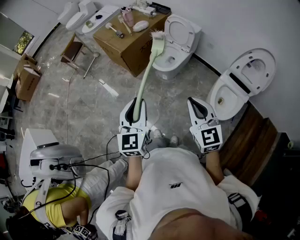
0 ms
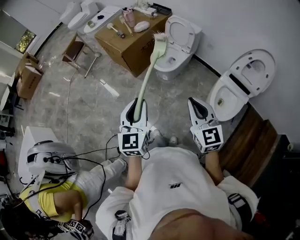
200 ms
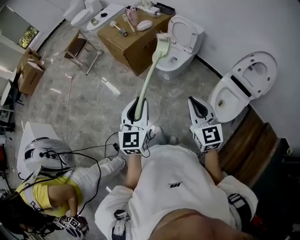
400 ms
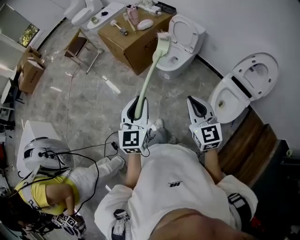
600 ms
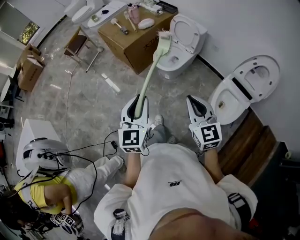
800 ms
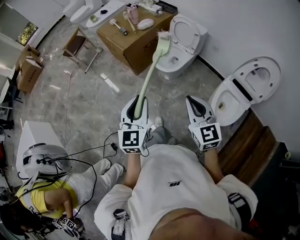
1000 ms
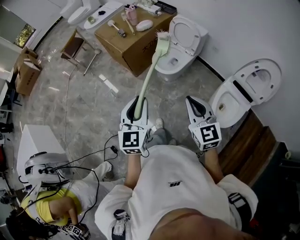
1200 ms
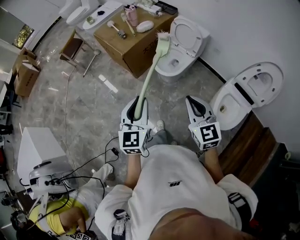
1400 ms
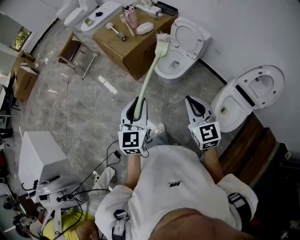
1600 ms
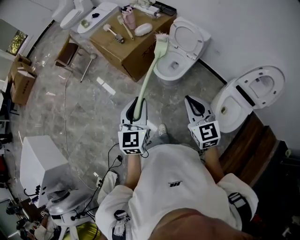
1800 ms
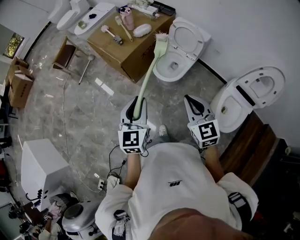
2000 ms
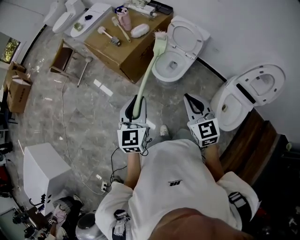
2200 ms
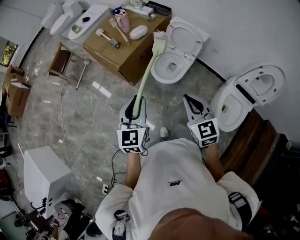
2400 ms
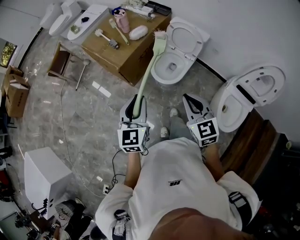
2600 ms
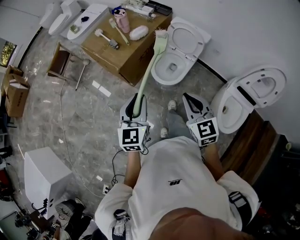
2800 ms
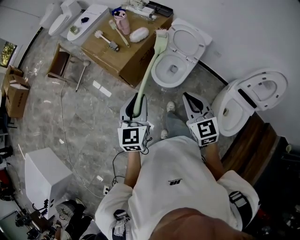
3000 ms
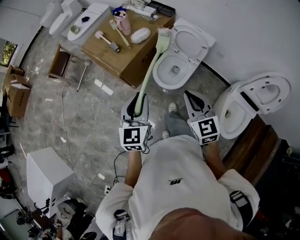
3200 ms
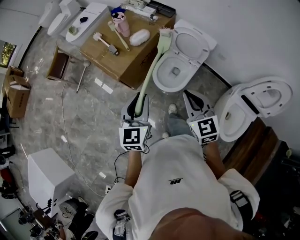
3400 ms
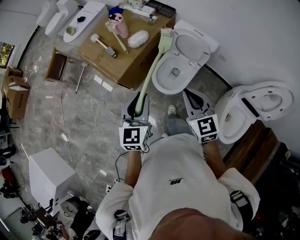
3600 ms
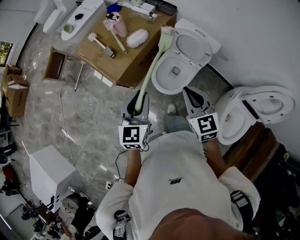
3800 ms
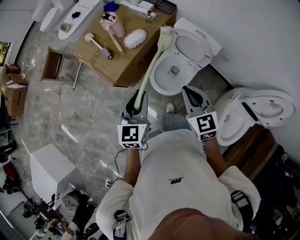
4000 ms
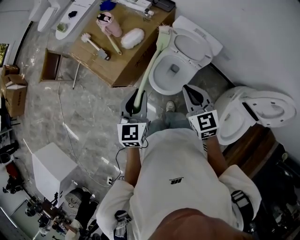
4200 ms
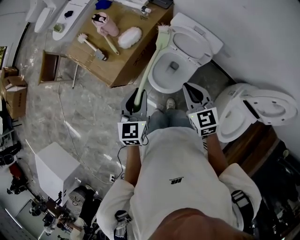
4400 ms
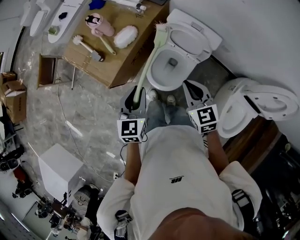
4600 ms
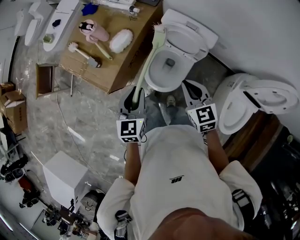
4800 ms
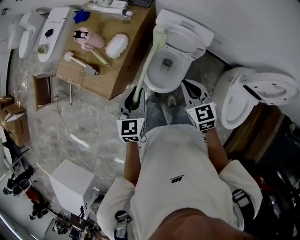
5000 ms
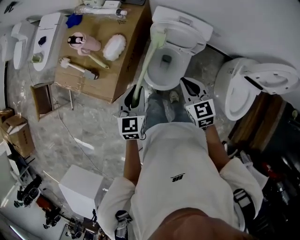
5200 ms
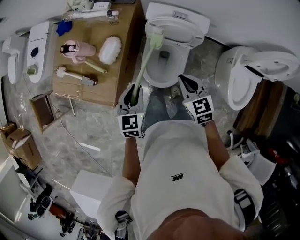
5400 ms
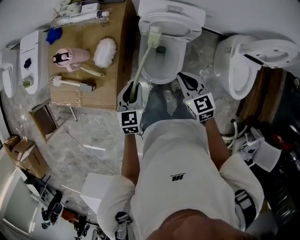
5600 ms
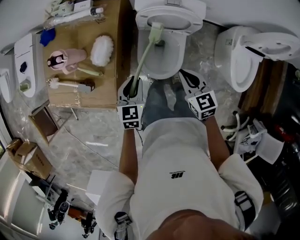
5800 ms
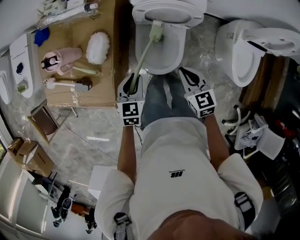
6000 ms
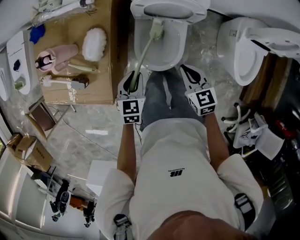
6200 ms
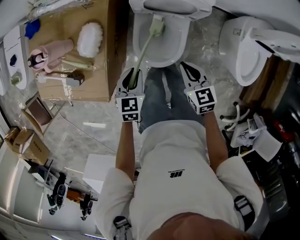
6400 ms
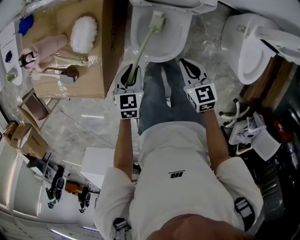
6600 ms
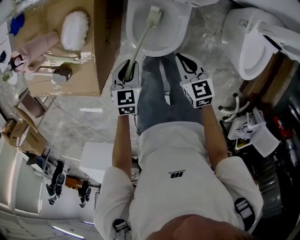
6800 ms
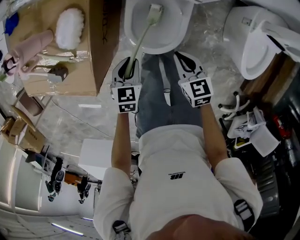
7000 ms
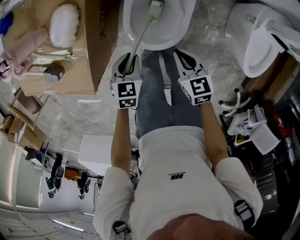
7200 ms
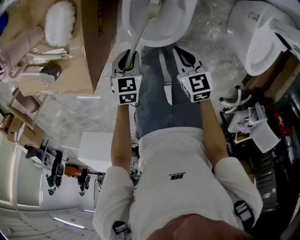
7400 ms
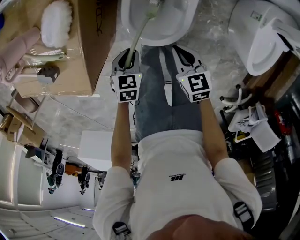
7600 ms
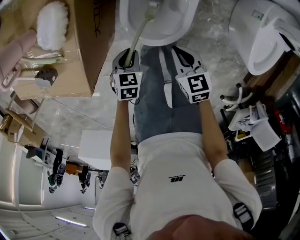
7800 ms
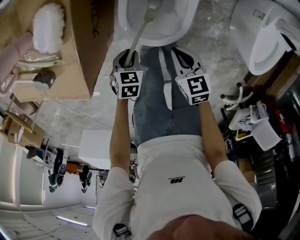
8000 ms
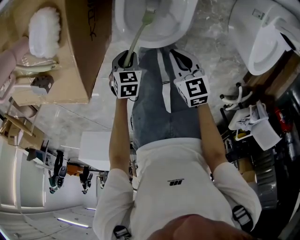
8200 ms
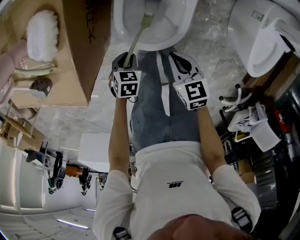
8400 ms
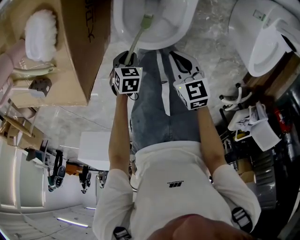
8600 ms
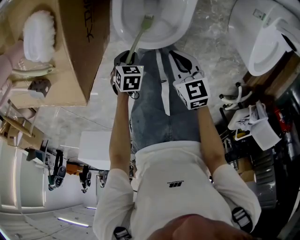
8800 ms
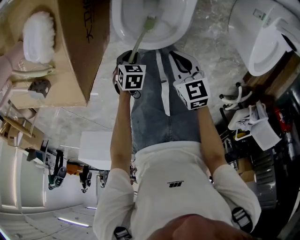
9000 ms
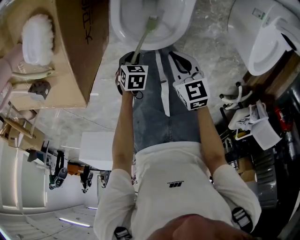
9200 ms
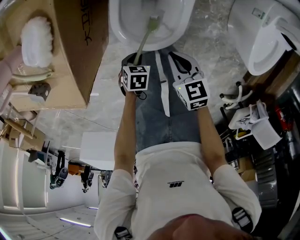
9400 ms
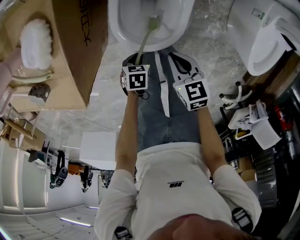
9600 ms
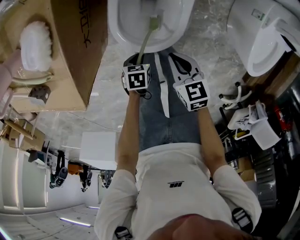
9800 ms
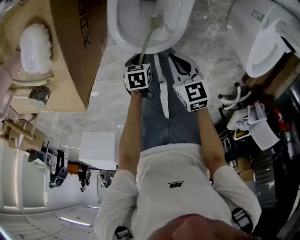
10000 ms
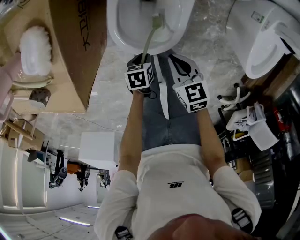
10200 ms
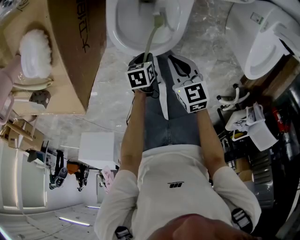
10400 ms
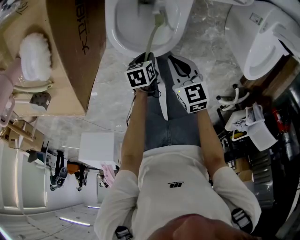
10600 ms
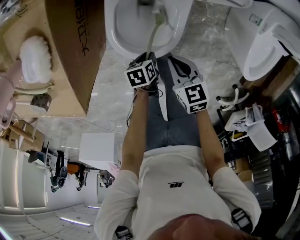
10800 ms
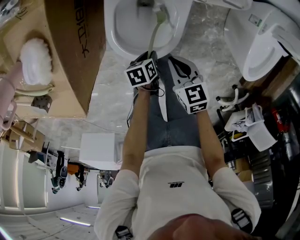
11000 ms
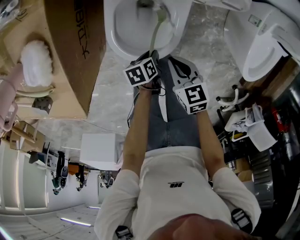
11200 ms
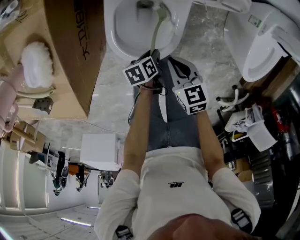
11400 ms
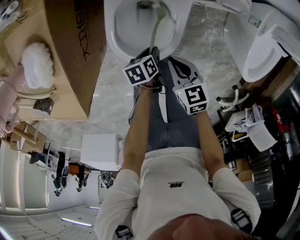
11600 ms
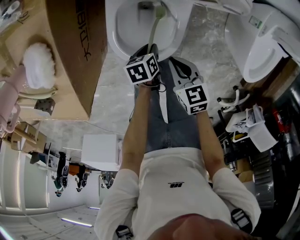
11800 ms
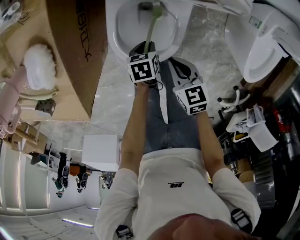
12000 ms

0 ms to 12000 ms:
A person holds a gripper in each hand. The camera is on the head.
0 ms to 1600 ms: Both grippers travel together forward, about 15 cm.
1600 ms to 3000 ms: Both grippers move forward, about 20 cm.
3000 ms to 4400 ms: The two grippers go roughly 30 cm forward.
4400 ms to 6000 ms: The two grippers go about 20 cm downward. The right gripper swivels approximately 30 degrees, while the left gripper turns by about 40 degrees.
6000 ms to 7600 ms: Both grippers move downward, some 25 cm.
7600 ms to 9000 ms: The left gripper goes about 10 cm downward, and changes its angle by about 20 degrees.
9000 ms to 10400 ms: The left gripper changes place by some 10 cm, and changes its angle by approximately 30 degrees.
10400 ms to 12000 ms: The left gripper travels forward by roughly 10 cm.

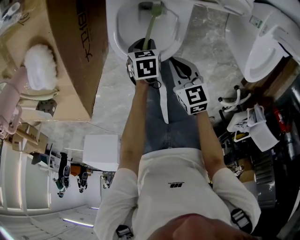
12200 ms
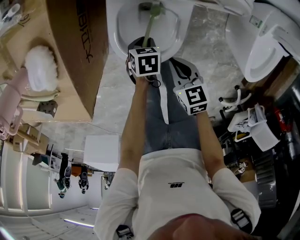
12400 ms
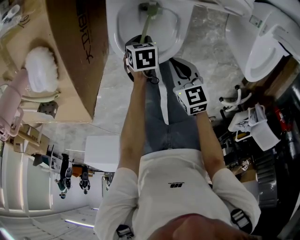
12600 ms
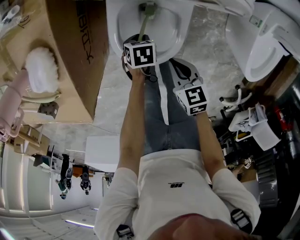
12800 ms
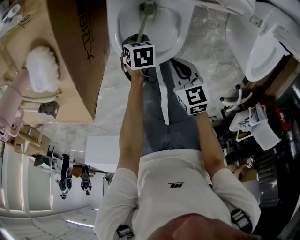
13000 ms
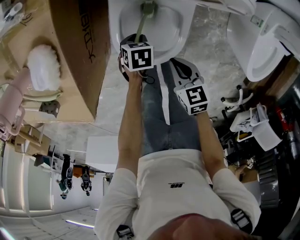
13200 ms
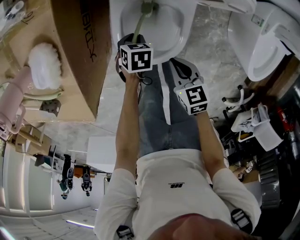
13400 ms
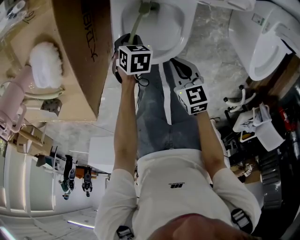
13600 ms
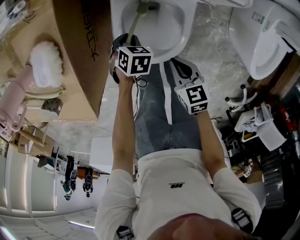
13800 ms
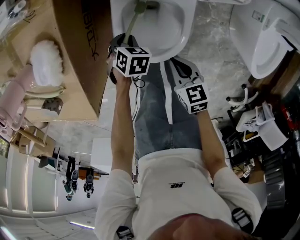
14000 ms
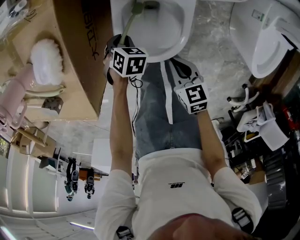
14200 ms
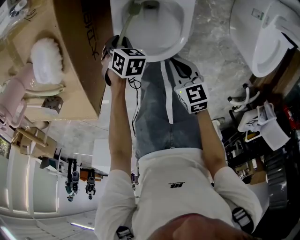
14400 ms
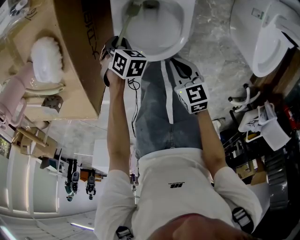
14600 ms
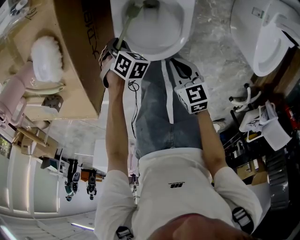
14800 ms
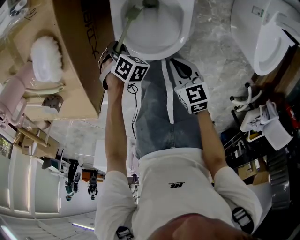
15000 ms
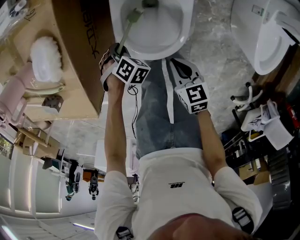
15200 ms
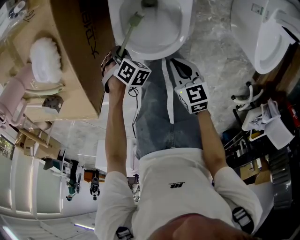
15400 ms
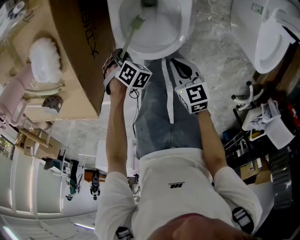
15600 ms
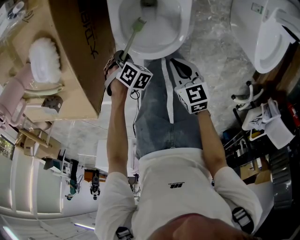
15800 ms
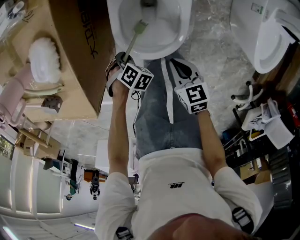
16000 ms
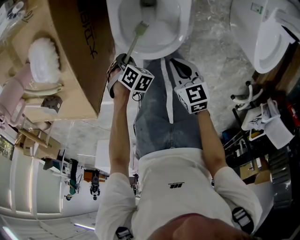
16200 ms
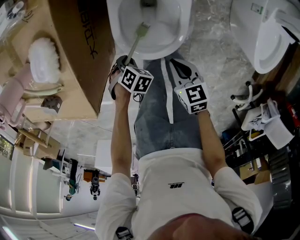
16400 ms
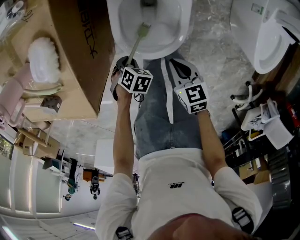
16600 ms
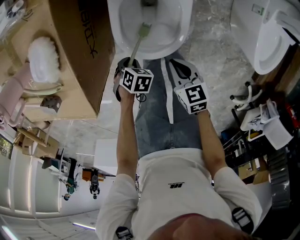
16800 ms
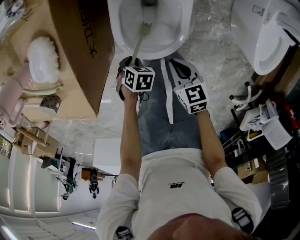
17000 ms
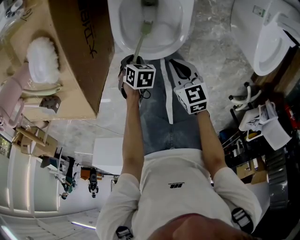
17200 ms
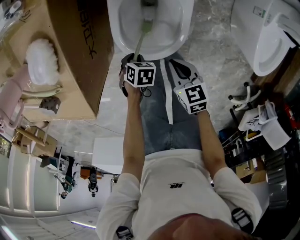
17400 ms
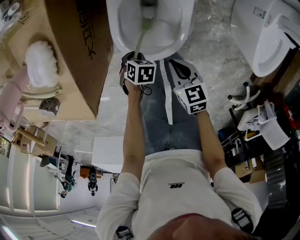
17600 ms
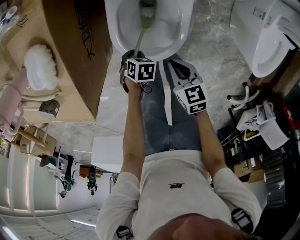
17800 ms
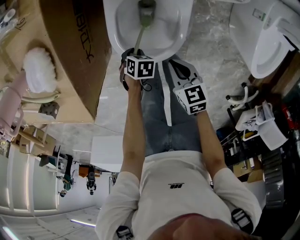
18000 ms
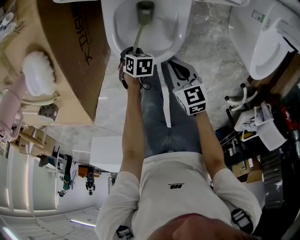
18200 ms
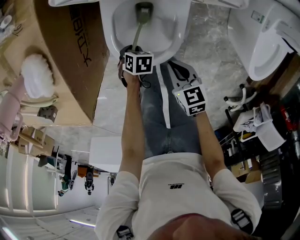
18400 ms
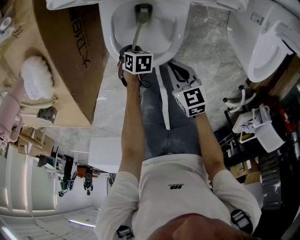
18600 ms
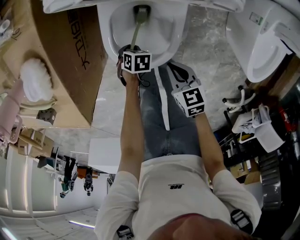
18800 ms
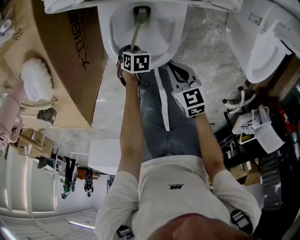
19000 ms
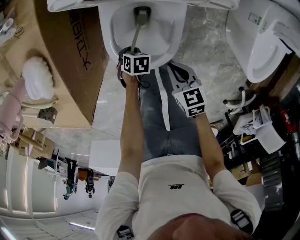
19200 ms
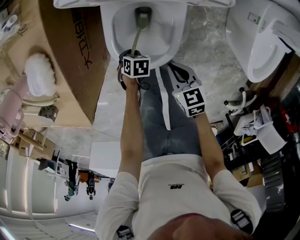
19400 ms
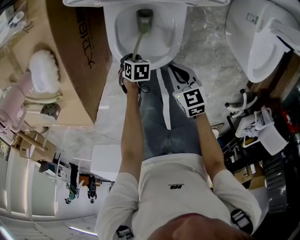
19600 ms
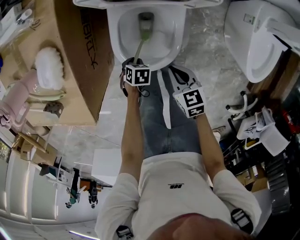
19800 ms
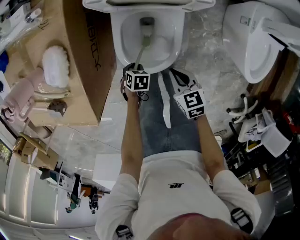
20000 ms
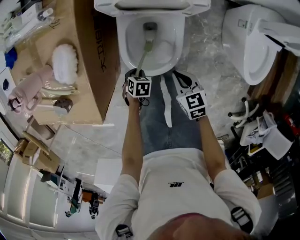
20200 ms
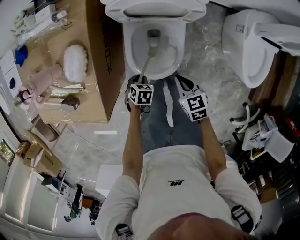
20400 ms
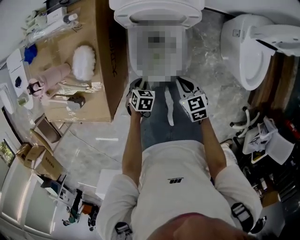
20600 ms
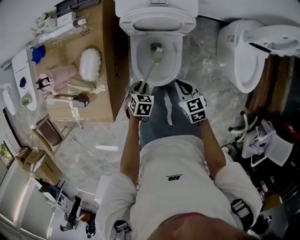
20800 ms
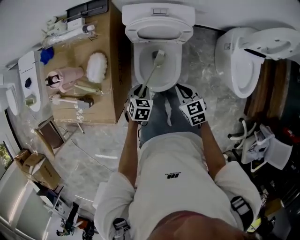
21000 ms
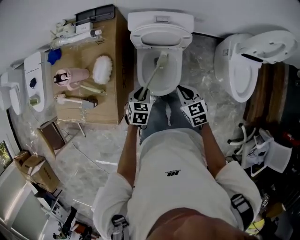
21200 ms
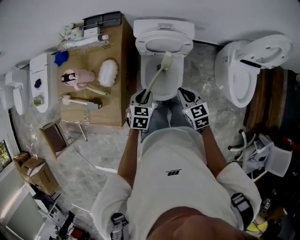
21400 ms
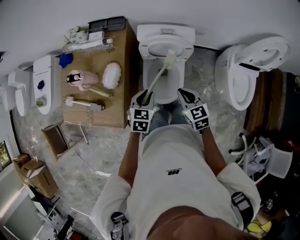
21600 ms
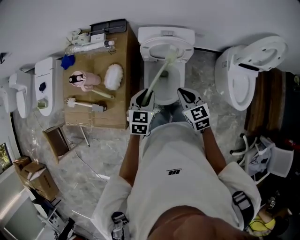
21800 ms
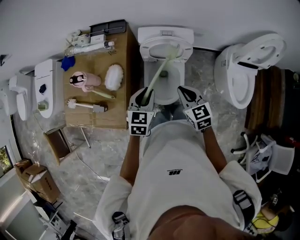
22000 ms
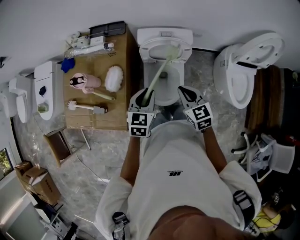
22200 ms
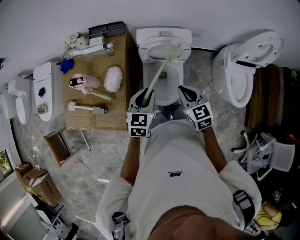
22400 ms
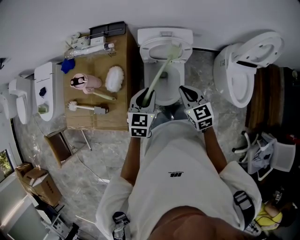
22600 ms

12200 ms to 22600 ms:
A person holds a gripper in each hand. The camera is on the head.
12200 ms to 13600 ms: The left gripper shifts by about 10 cm, and turns by some 20 degrees.
13600 ms to 15200 ms: The left gripper moves approximately 10 cm, and rotates approximately 40 degrees.
15200 ms to 16600 ms: The left gripper changes place by about 10 cm.
16600 ms to 18200 ms: The left gripper ends up approximately 10 cm from where it was, and changes its angle by about 20 degrees.
18200 ms to 19600 ms: The grippers stay close to where they were, moving slightly.
19600 ms to 21200 ms: The two grippers go about 30 cm upward. The left gripper turns by some 40 degrees.
21200 ms to 22600 ms: Both grippers move upward, about 15 cm. The left gripper turns by about 20 degrees.

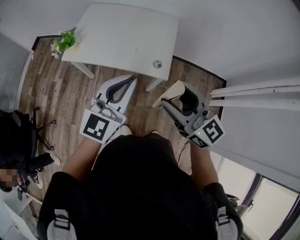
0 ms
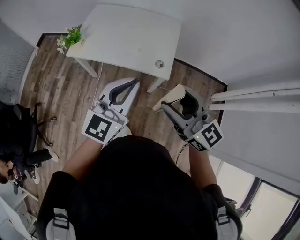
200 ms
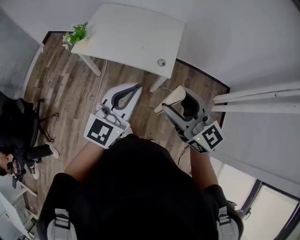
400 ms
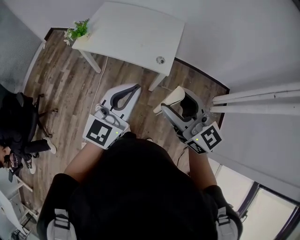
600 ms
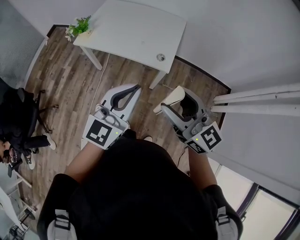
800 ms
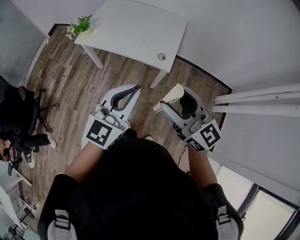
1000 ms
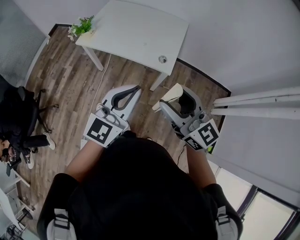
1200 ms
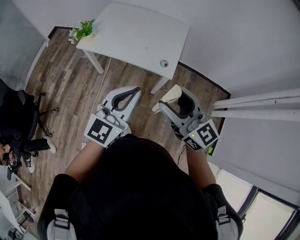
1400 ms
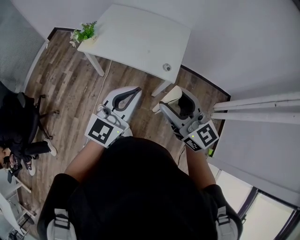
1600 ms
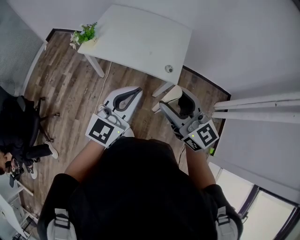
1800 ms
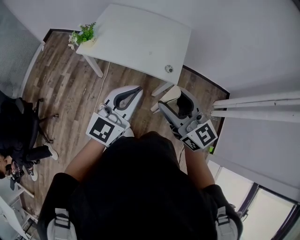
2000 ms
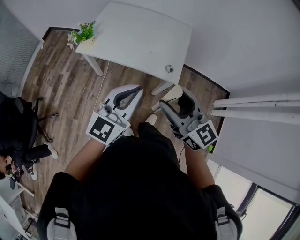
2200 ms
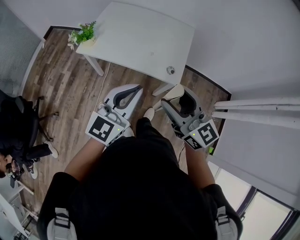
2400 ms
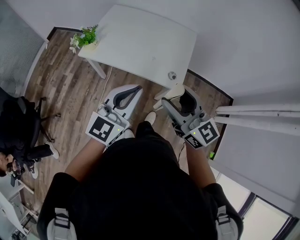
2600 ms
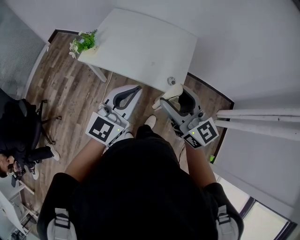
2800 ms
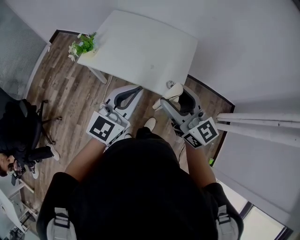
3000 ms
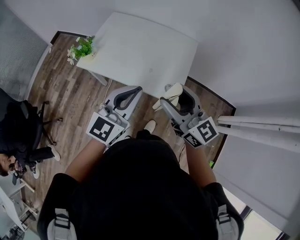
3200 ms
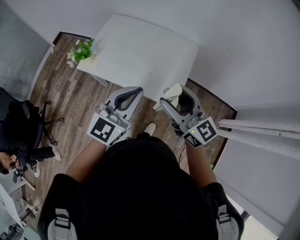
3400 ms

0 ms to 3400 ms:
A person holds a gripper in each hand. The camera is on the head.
0 ms to 1600 ms: Both grippers move backward, approximately 10 cm.
1600 ms to 3400 ms: Both grippers move forward, roughly 20 cm.
